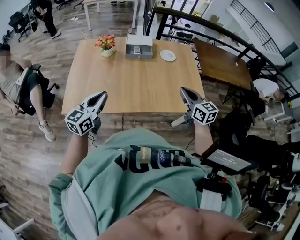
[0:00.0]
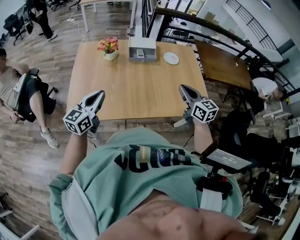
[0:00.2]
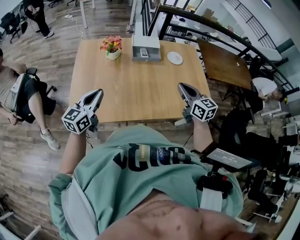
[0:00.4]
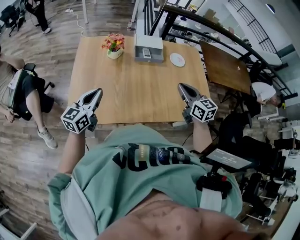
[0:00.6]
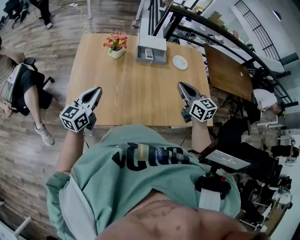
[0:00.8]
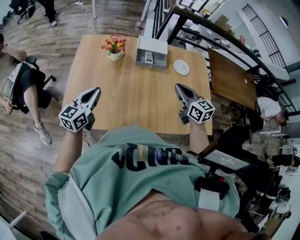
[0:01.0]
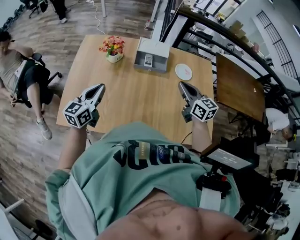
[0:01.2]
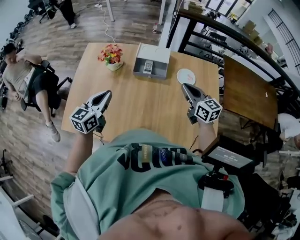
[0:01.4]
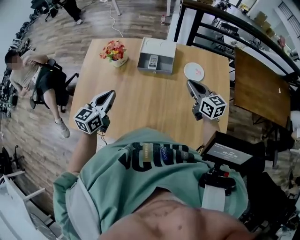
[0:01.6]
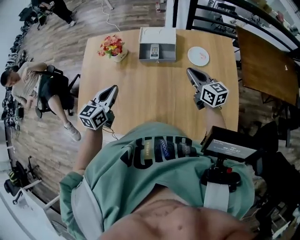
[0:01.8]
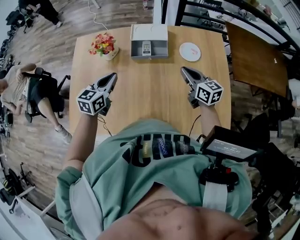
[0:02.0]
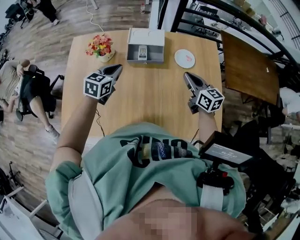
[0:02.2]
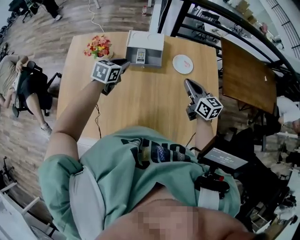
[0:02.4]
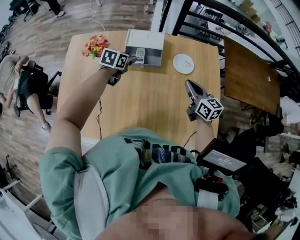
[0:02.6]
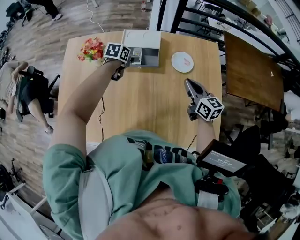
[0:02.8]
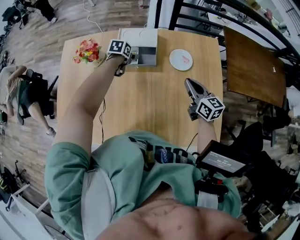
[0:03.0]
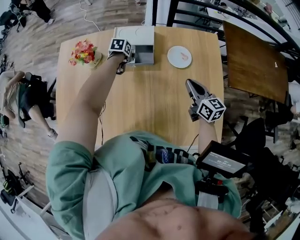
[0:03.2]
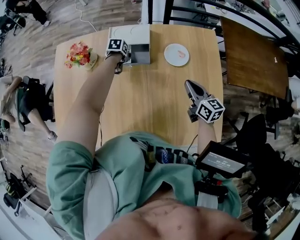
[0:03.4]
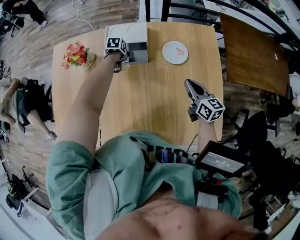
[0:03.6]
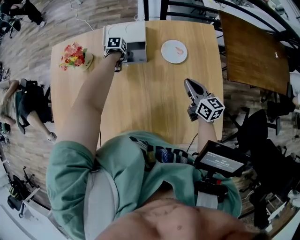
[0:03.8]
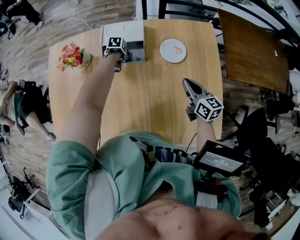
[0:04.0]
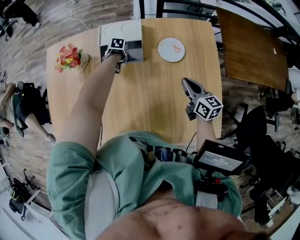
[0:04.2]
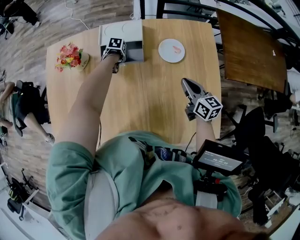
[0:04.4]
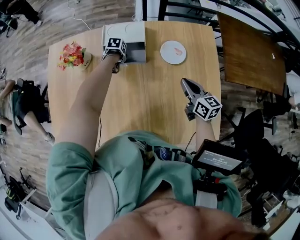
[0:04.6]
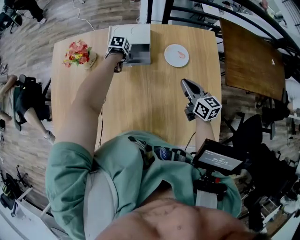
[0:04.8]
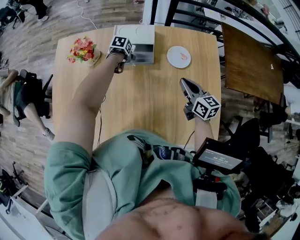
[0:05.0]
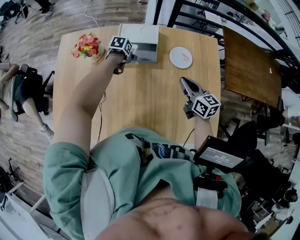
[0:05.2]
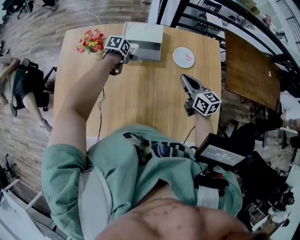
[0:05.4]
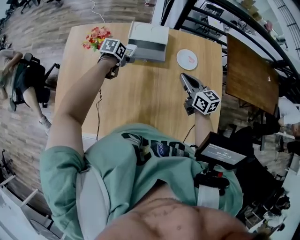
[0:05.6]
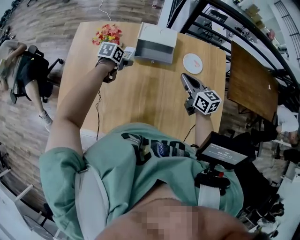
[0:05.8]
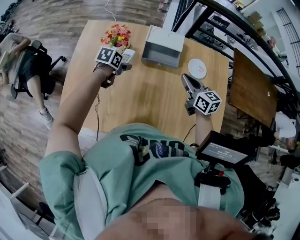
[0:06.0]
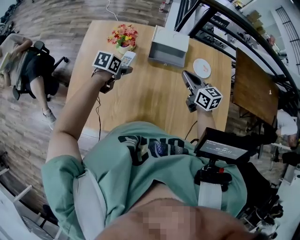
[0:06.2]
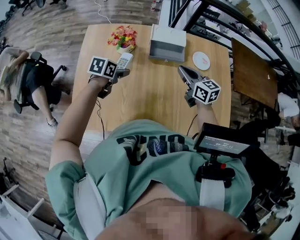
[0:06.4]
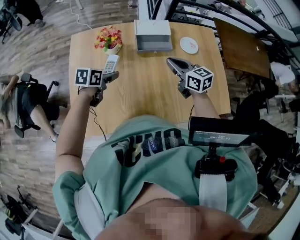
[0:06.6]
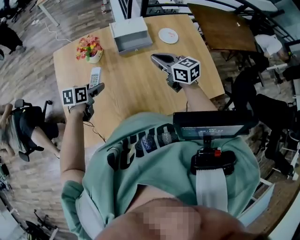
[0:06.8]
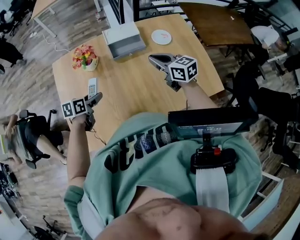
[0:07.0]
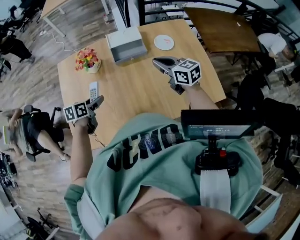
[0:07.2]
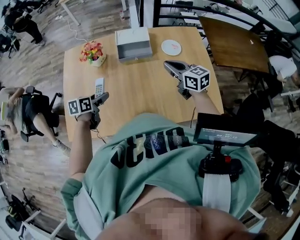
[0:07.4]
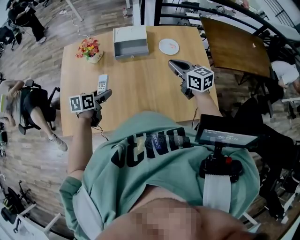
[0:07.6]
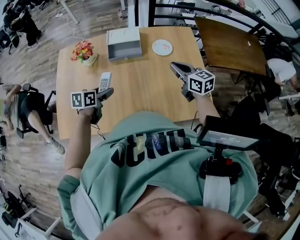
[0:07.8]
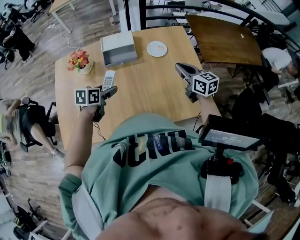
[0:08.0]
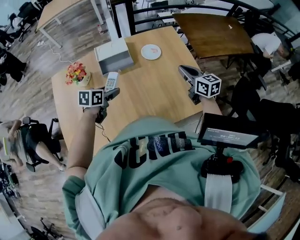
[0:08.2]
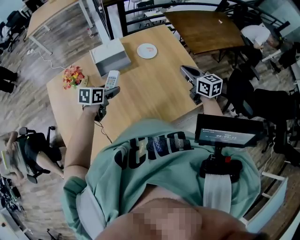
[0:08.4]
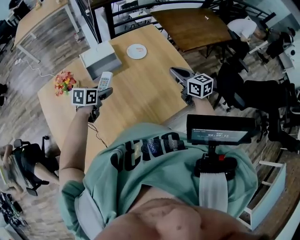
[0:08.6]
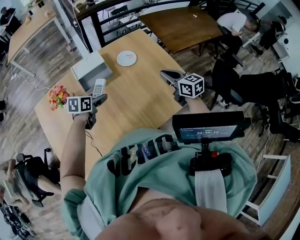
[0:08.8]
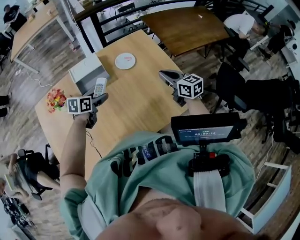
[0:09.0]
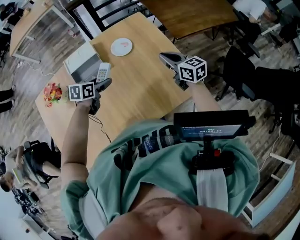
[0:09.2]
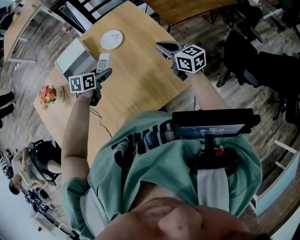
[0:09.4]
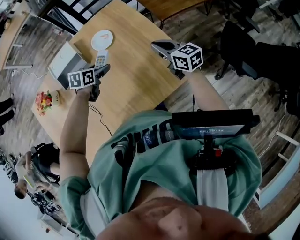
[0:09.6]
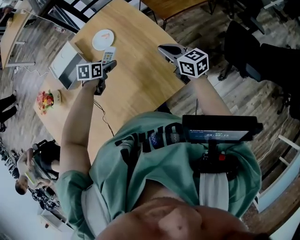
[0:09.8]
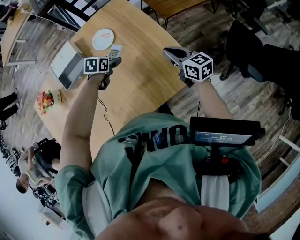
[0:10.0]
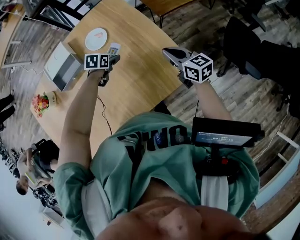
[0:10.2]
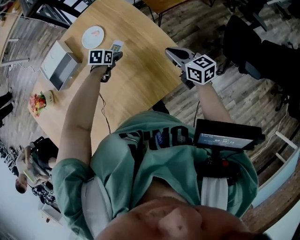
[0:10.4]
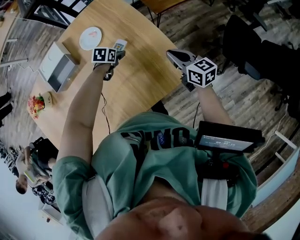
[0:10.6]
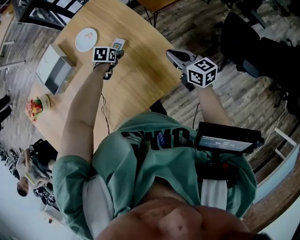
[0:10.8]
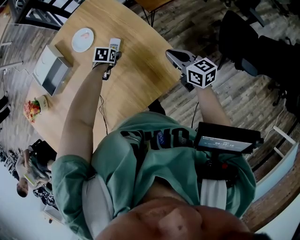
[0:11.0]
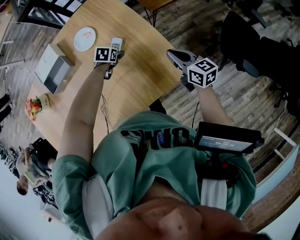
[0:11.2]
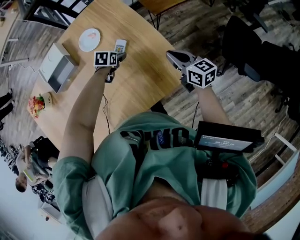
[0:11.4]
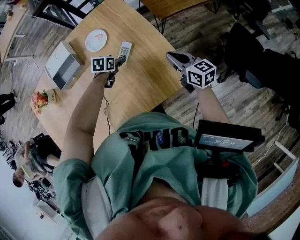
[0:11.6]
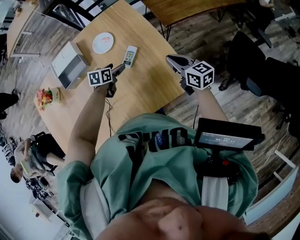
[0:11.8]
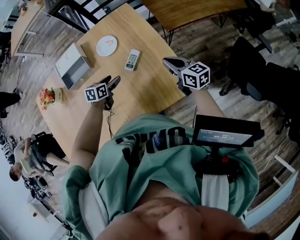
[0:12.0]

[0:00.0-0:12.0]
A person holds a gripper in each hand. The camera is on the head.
0:00.0 to 0:01.6: Both grippers move forward, some 30 cm.
0:01.6 to 0:03.0: The right gripper heads downward and to the right, covering approximately 10 cm, while the left gripper heads forward and downward, covering roughly 40 cm, tilts its fingers approximately 40 degrees downward, and opens.
0:03.0 to 0:04.4: The left gripper travels downward by approximately 10 cm, and changes its angle by approximately 20 degrees. The right gripper travels downward by approximately 5 cm.
0:04.4 to 0:06.0: The right gripper moves roughly 20 cm; the left gripper moves some 30 cm, and changes its angle by some 30 degrees.
0:06.0 to 0:07.6: The left gripper goes about 20 cm backward, upward and to the right. Meanwhile the right gripper shifts about 15 cm to the right, backward and upward.
0:07.6 to 0:09.0: The right gripper moves approximately 15 cm, and turns by approximately 20 degrees; the left gripper moves some 20 cm, and changes its angle by about 30 degrees.
0:09.0 to 0:10.4: The left gripper heads to the right, downward and forward, covering about 35 cm, and turns by about 20 degrees. The right gripper travels to the right and downward by roughly 25 cm.
0:10.4 to 0:12.0: The left gripper goes approximately 10 cm backward, upward and to the left, and turns by roughly 20 degrees.

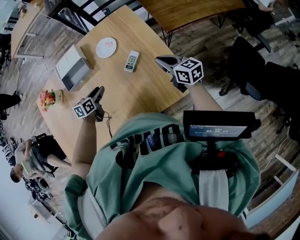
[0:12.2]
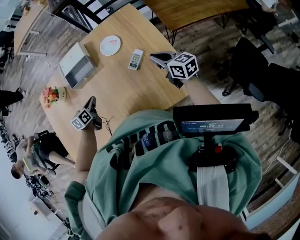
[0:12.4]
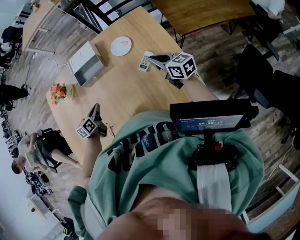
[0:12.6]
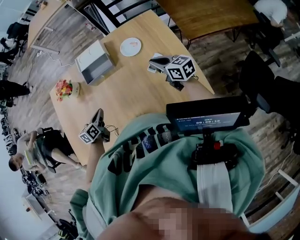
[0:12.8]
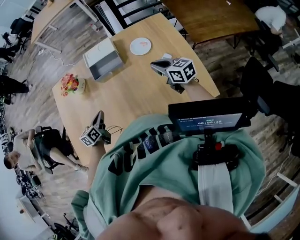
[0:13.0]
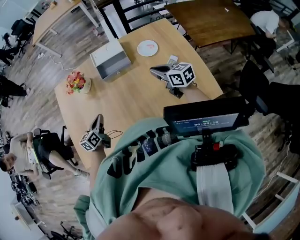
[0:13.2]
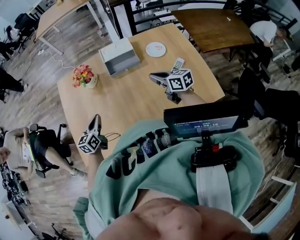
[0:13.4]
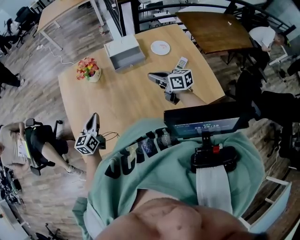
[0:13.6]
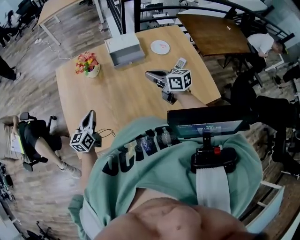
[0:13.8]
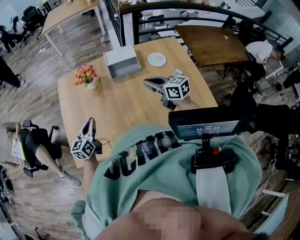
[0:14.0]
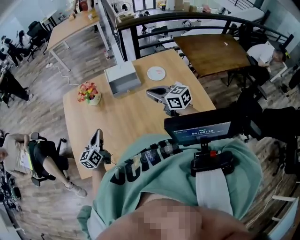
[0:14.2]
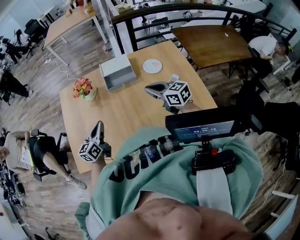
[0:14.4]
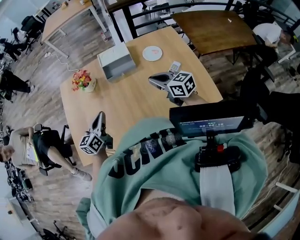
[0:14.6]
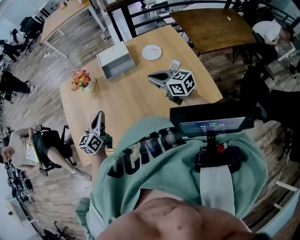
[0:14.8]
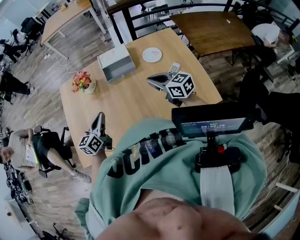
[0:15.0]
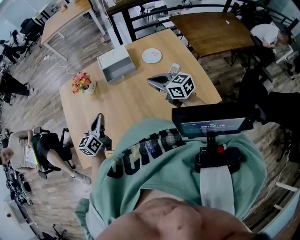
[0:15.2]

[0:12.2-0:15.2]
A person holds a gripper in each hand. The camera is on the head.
0:12.2 to 0:13.8: The pair of grippers is taken to the left, some 40 cm. The left gripper swivels roughly 30 degrees, and closes up.
0:13.8 to 0:15.2: Both grippers move to the right, some 15 cm.

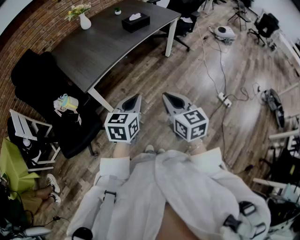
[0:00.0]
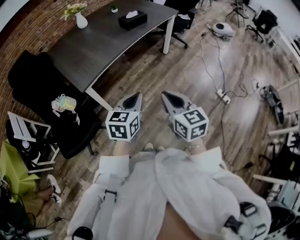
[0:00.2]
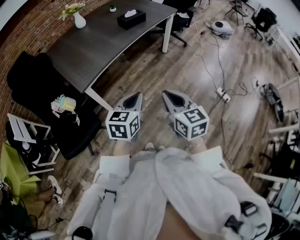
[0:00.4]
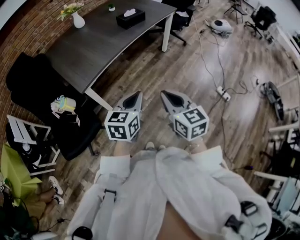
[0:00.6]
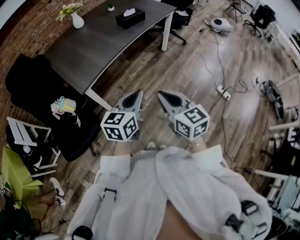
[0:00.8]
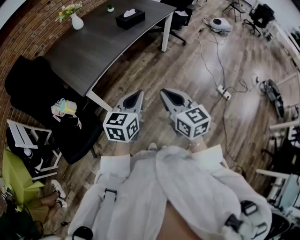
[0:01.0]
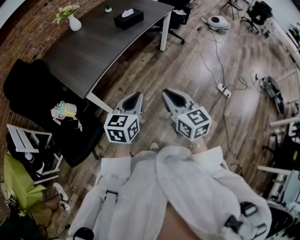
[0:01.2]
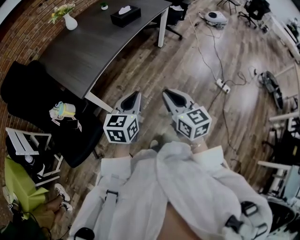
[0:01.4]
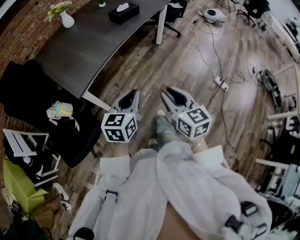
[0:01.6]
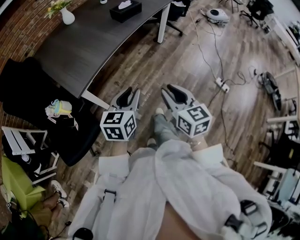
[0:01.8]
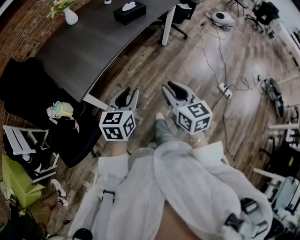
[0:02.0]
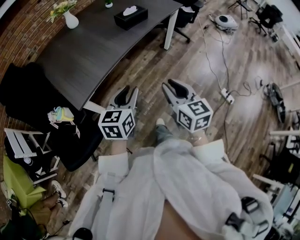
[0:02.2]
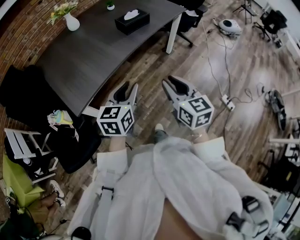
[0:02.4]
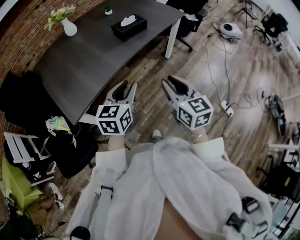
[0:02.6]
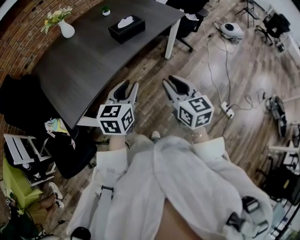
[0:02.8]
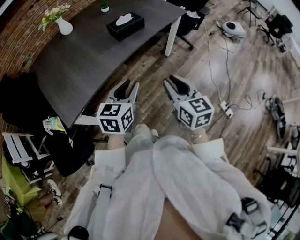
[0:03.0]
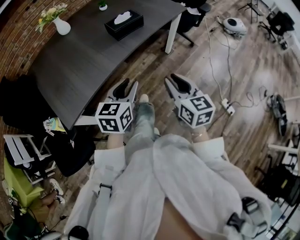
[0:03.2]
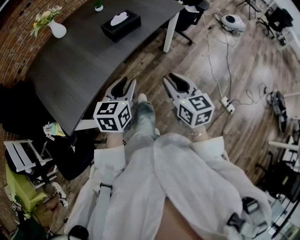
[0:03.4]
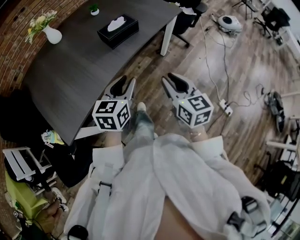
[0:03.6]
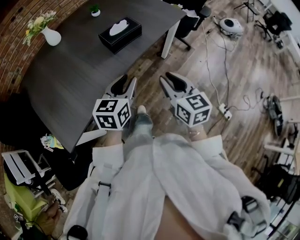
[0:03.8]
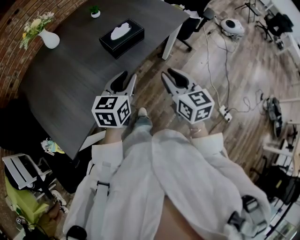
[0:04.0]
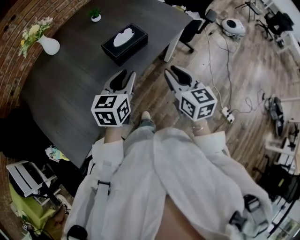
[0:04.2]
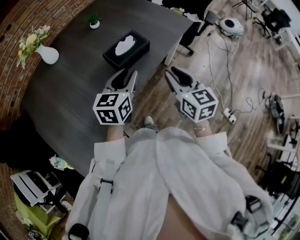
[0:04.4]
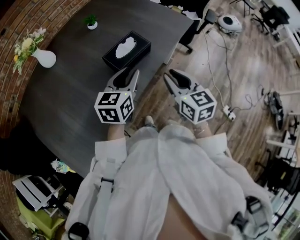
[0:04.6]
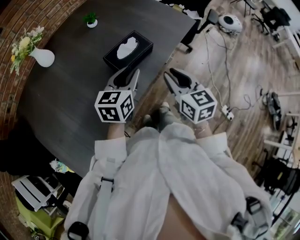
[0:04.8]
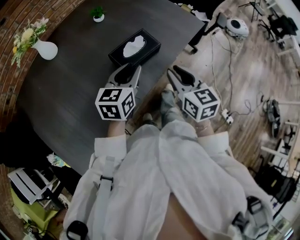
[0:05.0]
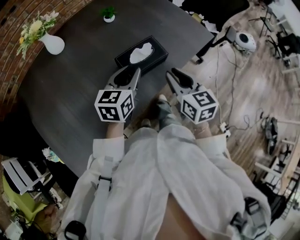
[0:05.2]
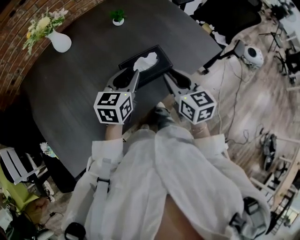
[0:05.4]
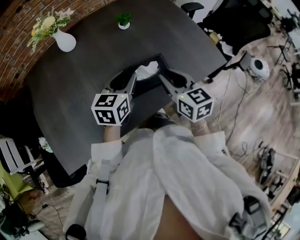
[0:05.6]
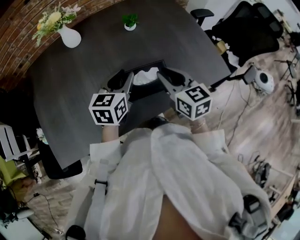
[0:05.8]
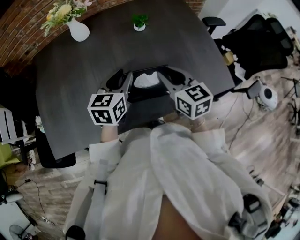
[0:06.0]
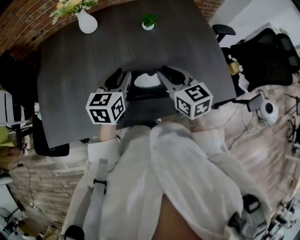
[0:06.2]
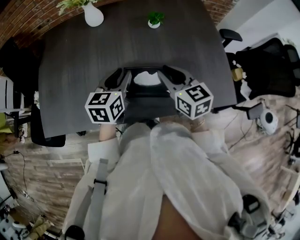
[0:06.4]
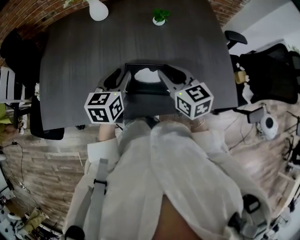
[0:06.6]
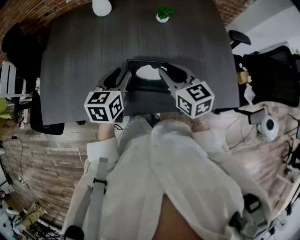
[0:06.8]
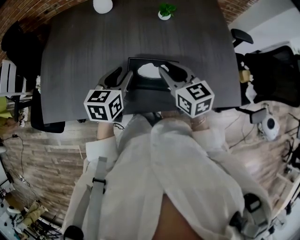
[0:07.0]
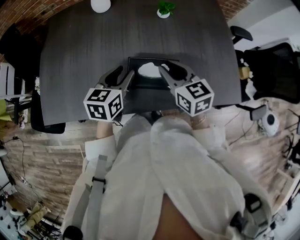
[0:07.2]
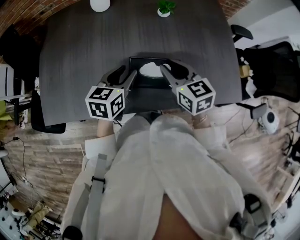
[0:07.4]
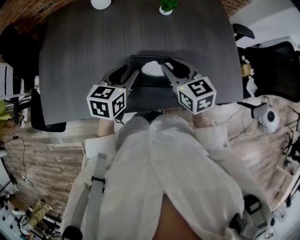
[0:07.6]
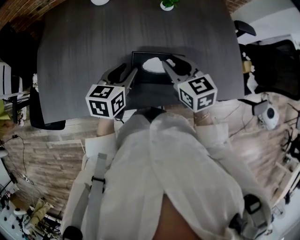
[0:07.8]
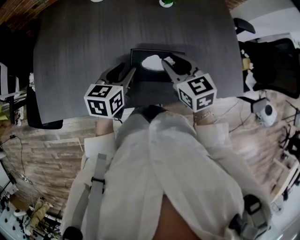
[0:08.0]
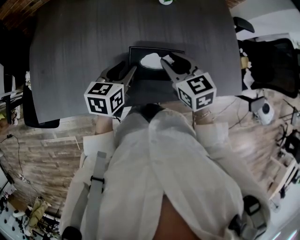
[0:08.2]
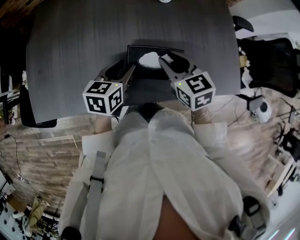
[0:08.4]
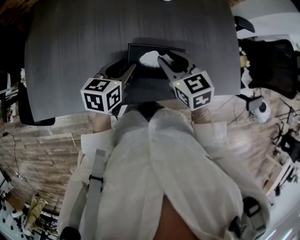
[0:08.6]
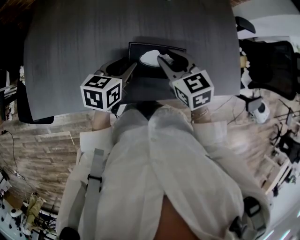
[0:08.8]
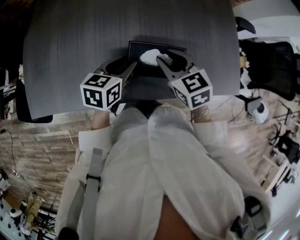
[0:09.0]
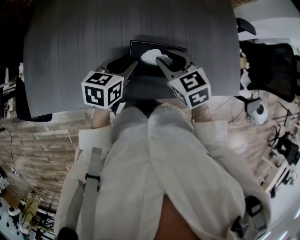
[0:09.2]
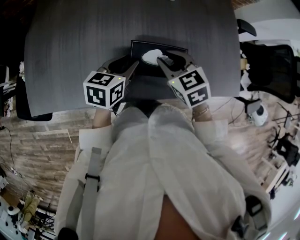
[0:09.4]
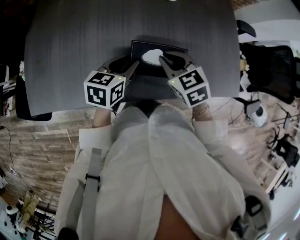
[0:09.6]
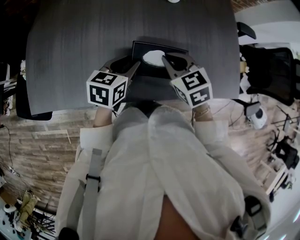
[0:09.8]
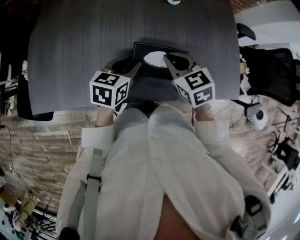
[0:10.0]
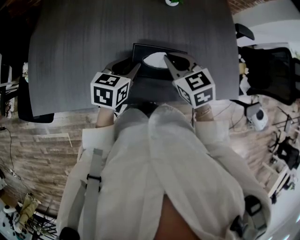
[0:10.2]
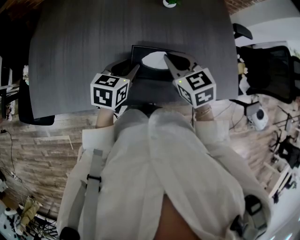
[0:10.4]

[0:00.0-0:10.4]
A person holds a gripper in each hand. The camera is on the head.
0:00.0 to 0:01.4: The left gripper shifts by about 5 cm; the right gripper changes place by roughly 5 cm.
0:01.4 to 0:03.0: Both grippers move forward, approximately 30 cm. The left gripper opens.
0:03.0 to 0:04.4: The grippers both shift forward by some 30 cm.
0:04.4 to 0:06.0: The right gripper changes place by some 25 cm, and swivels about 40 degrees. Meanwhile the left gripper ends up some 20 cm from where it was, and changes its angle by approximately 30 degrees.
0:06.0 to 0:07.4: The left gripper moves about 5 cm.
0:07.4 to 0:09.0: The left gripper shifts about 5 cm downward.
0:09.0 to 0:10.4: The right gripper closes.
